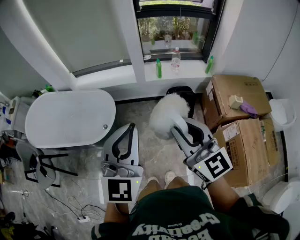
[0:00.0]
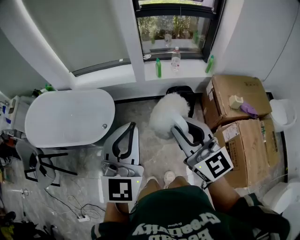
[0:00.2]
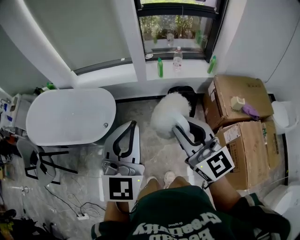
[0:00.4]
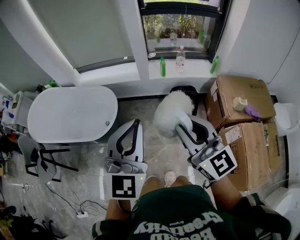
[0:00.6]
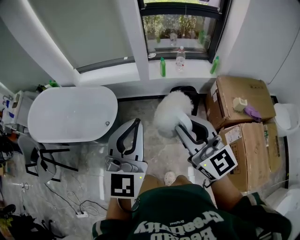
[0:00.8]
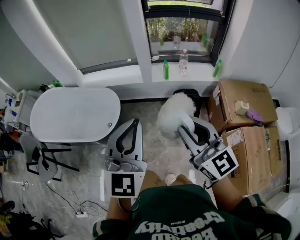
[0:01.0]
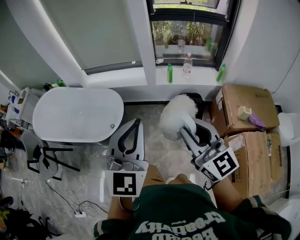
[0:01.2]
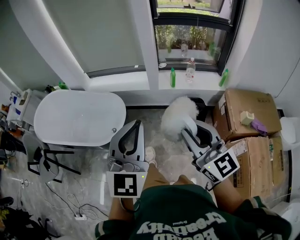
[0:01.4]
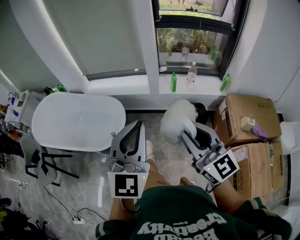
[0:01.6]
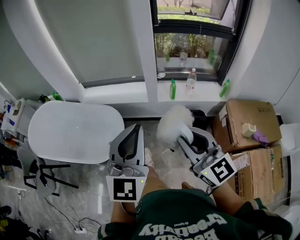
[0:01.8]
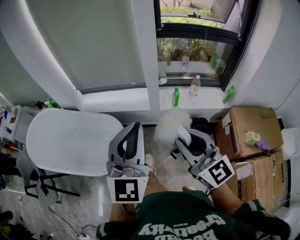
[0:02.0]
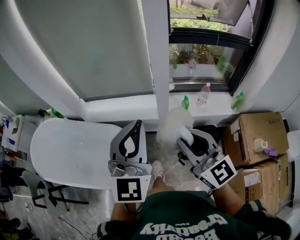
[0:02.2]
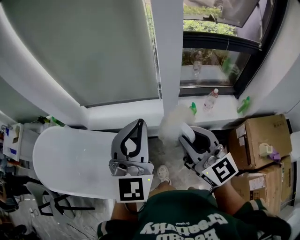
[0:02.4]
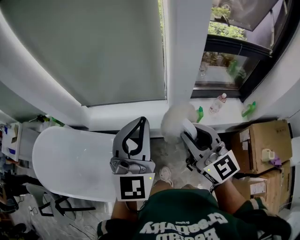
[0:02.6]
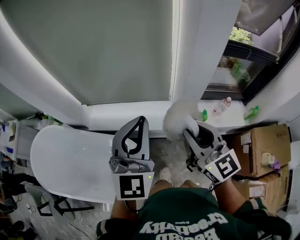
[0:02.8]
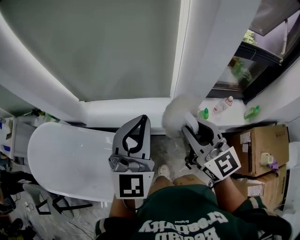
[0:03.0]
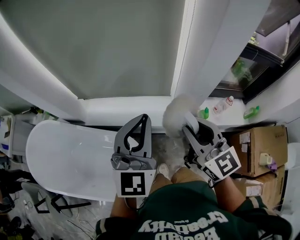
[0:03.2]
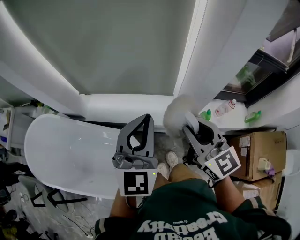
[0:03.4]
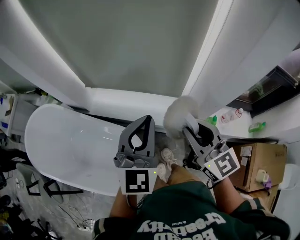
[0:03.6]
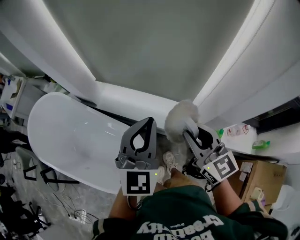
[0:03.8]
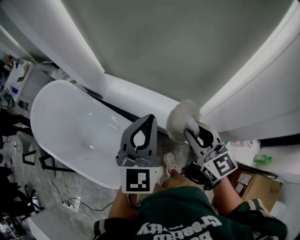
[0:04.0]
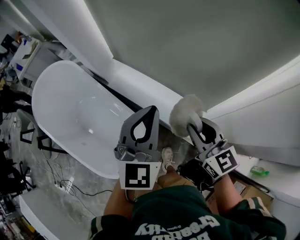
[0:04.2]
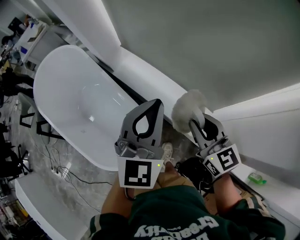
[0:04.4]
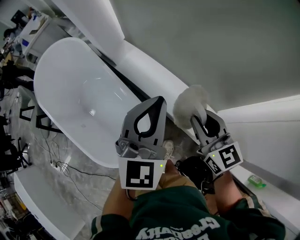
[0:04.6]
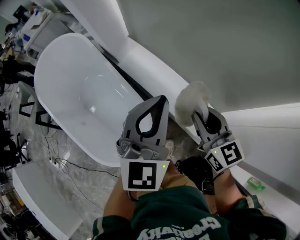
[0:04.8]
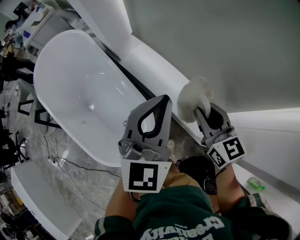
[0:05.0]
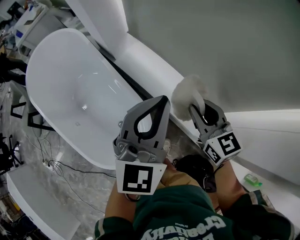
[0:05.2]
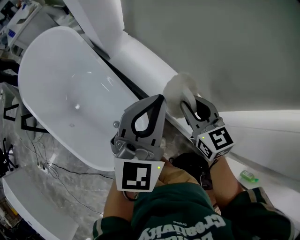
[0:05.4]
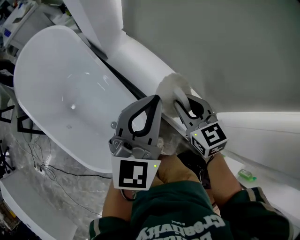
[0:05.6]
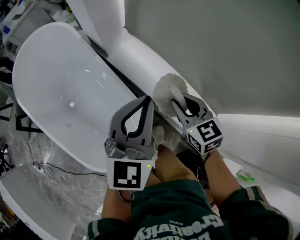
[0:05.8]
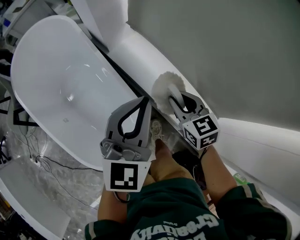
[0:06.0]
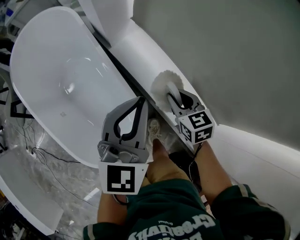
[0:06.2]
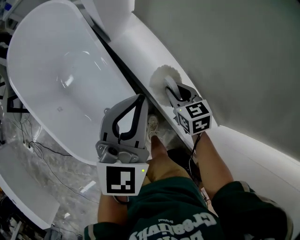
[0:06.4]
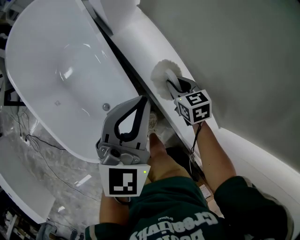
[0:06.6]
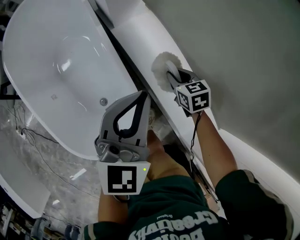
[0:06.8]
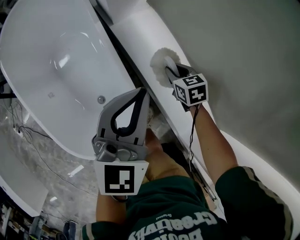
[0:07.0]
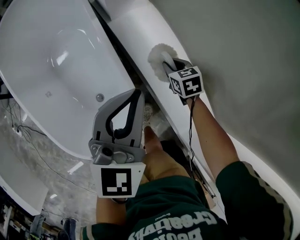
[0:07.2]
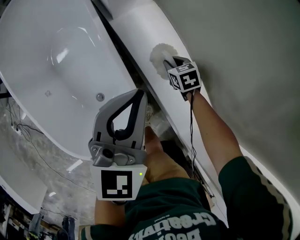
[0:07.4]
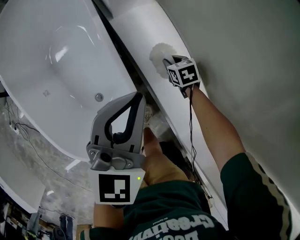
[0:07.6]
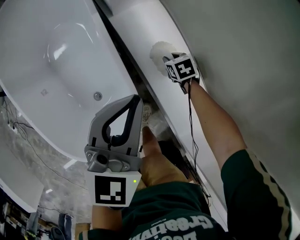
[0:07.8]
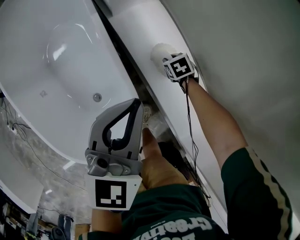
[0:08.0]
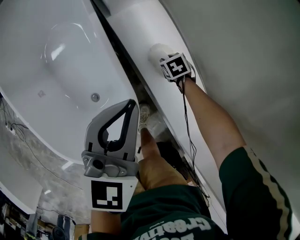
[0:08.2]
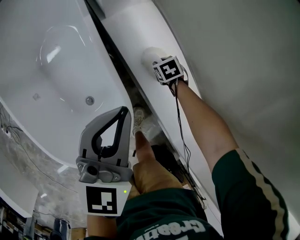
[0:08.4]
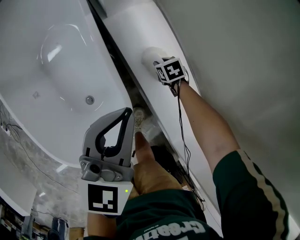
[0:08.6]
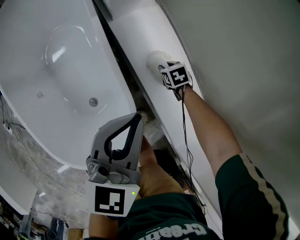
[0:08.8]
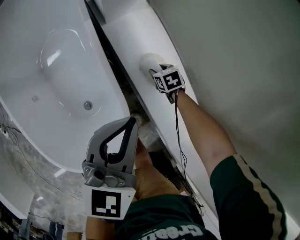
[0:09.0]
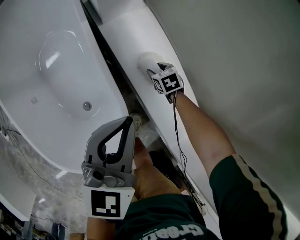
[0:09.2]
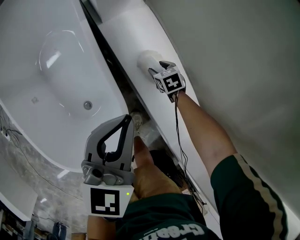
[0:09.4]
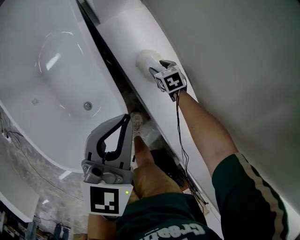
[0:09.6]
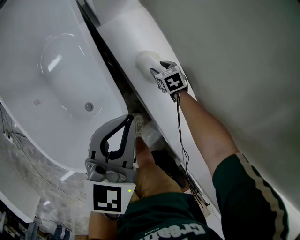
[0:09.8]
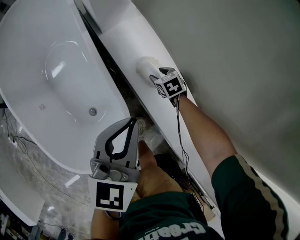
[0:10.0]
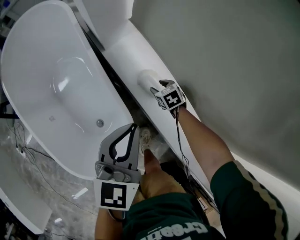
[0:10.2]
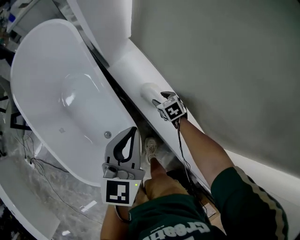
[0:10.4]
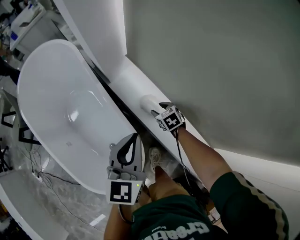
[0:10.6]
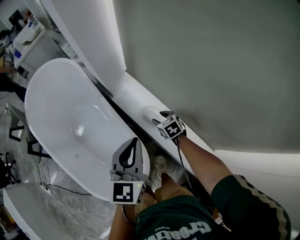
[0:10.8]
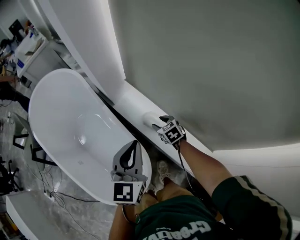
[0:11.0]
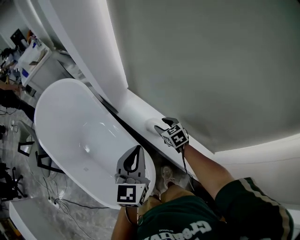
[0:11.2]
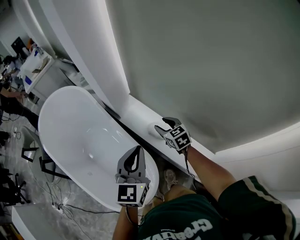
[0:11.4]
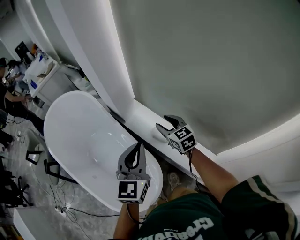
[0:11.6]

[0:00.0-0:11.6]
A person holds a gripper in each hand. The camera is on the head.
0:00.0 to 0:01.4: The grippers stay close to where they were, moving slightly.
0:01.4 to 0:02.8: The pair of grippers is taken forward, approximately 60 cm.
0:02.8 to 0:04.4: The left gripper ends up about 20 cm from where it was, and turns by approximately 30 degrees. Meanwhile the right gripper moves approximately 25 cm, and turns by roughly 40 degrees.
0:04.4 to 0:05.8: The left gripper heads to the left, downward and forward, covering roughly 15 cm, while the right gripper goes approximately 20 cm forward, downward and to the left, and changes its angle by some 20 degrees.
0:05.8 to 0:07.2: The right gripper travels downward and forward by about 30 cm, and rotates roughly 30 degrees. The left gripper goes about 15 cm downward and forward.
0:07.2 to 0:08.8: The left gripper shifts by some 5 cm, while the right gripper goes some 15 cm downward.
0:08.8 to 0:10.2: The left gripper ends up about 5 cm from where it was; the right gripper travels upward by approximately 10 cm, and opens its fingers.
0:10.2 to 0:11.6: The right gripper goes approximately 35 cm upward, and angles its fingers upward, by approximately 40 degrees, while the left gripper is displaced upward by roughly 20 cm.

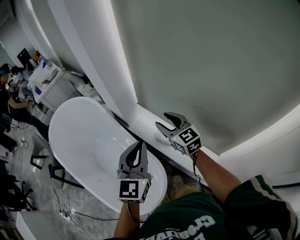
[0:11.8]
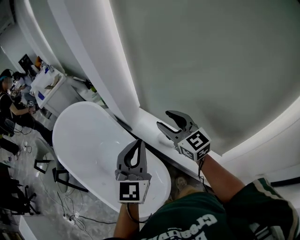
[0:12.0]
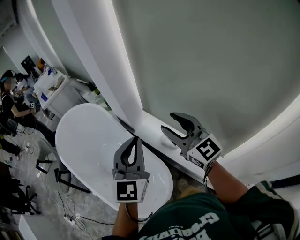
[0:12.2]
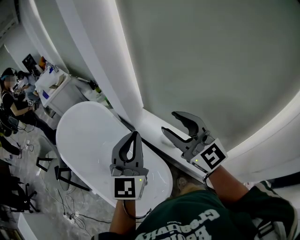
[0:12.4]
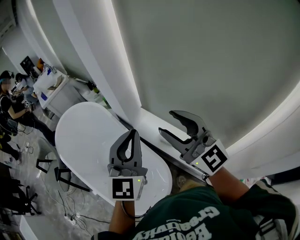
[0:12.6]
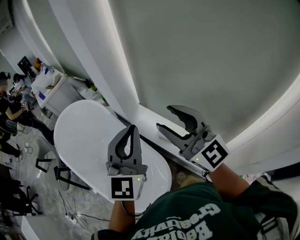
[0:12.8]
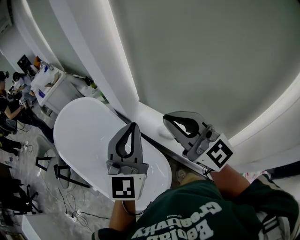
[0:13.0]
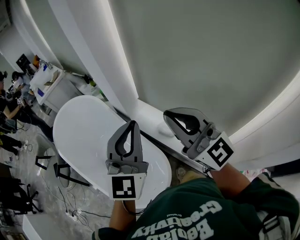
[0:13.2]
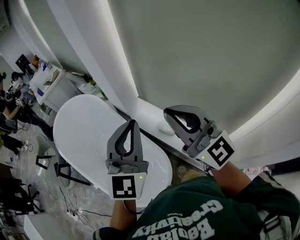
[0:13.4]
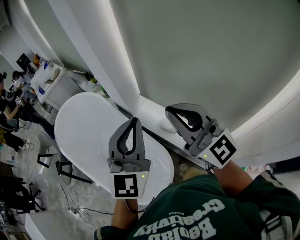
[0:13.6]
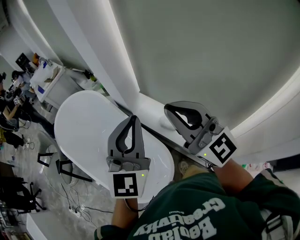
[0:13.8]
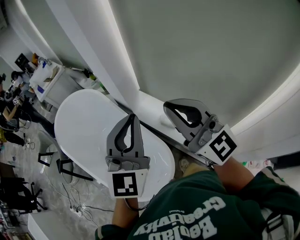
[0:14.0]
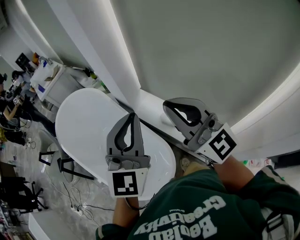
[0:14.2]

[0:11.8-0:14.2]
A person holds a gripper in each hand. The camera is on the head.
0:11.8 to 0:13.0: The left gripper moves upward, about 10 cm, while the right gripper is displaced upward and backward by roughly 25 cm, swivels approximately 30 degrees, and closes up.
0:13.0 to 0:14.2: The grippers move only a little.

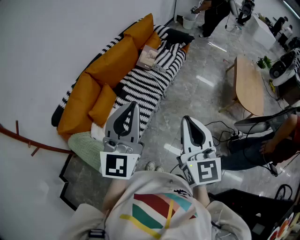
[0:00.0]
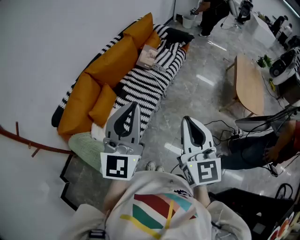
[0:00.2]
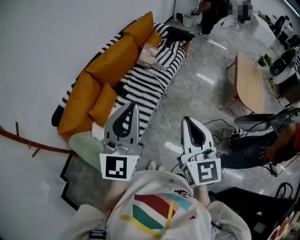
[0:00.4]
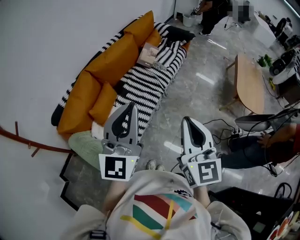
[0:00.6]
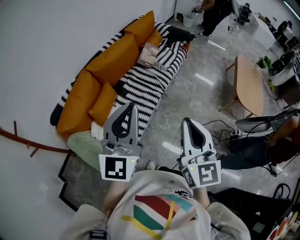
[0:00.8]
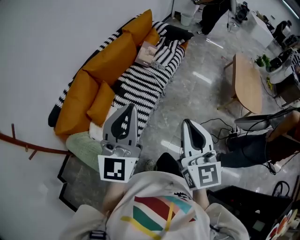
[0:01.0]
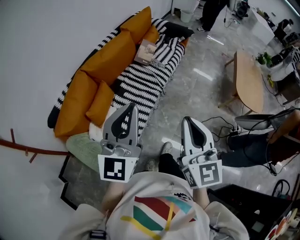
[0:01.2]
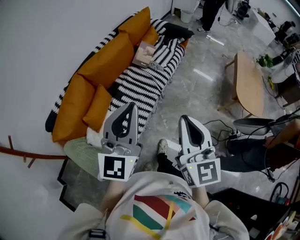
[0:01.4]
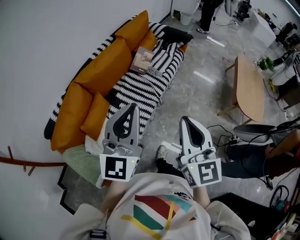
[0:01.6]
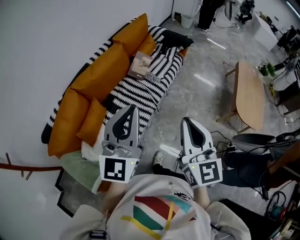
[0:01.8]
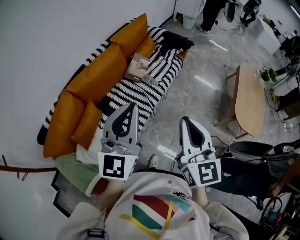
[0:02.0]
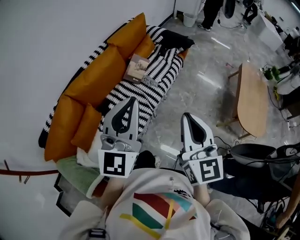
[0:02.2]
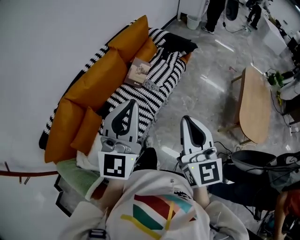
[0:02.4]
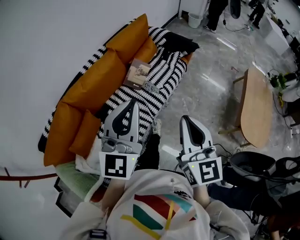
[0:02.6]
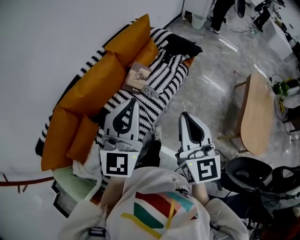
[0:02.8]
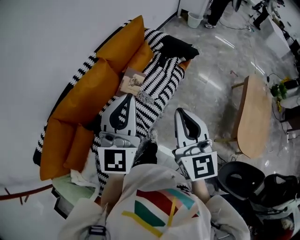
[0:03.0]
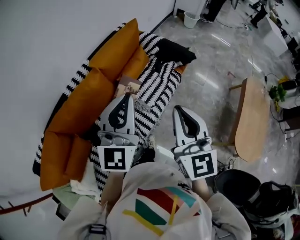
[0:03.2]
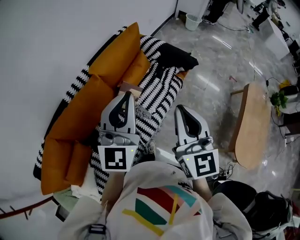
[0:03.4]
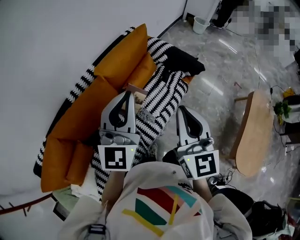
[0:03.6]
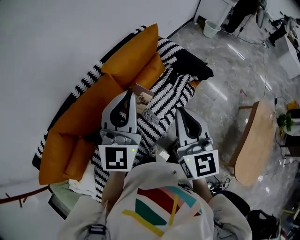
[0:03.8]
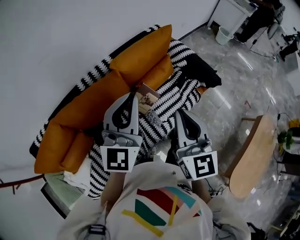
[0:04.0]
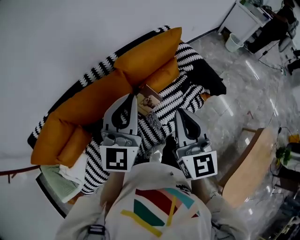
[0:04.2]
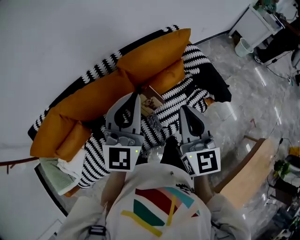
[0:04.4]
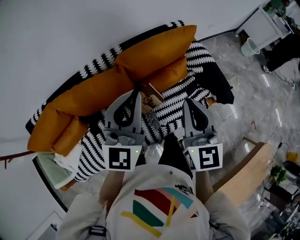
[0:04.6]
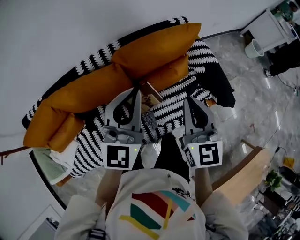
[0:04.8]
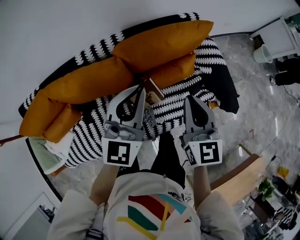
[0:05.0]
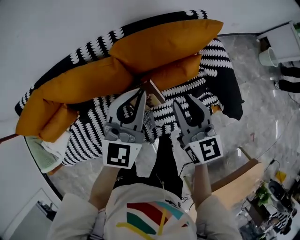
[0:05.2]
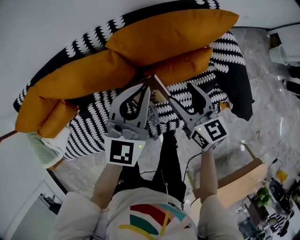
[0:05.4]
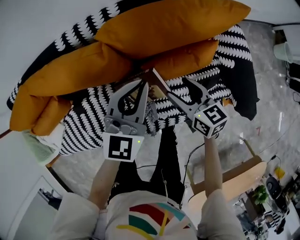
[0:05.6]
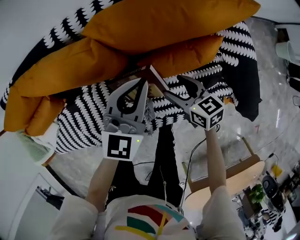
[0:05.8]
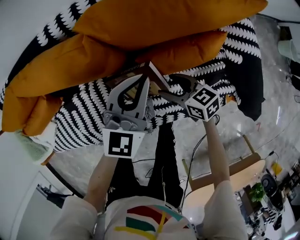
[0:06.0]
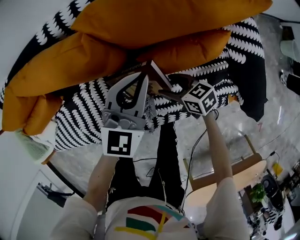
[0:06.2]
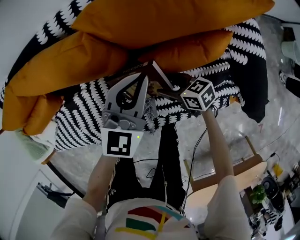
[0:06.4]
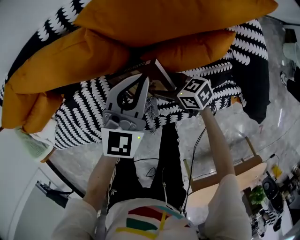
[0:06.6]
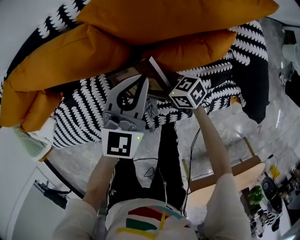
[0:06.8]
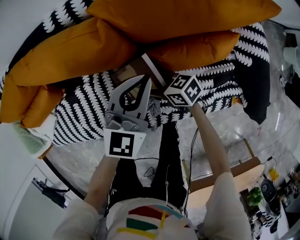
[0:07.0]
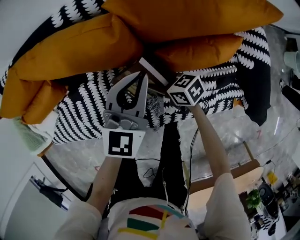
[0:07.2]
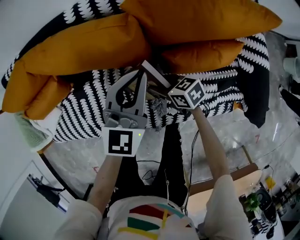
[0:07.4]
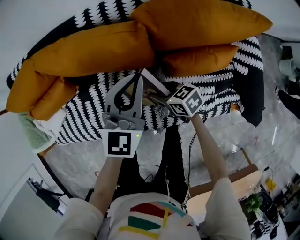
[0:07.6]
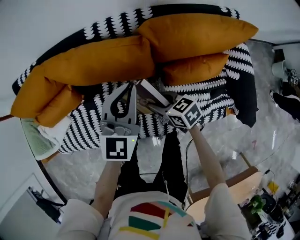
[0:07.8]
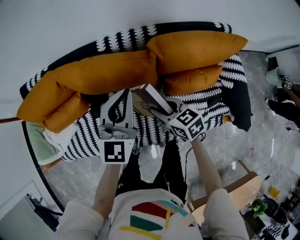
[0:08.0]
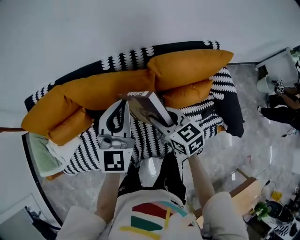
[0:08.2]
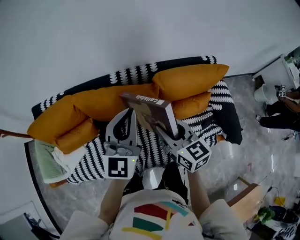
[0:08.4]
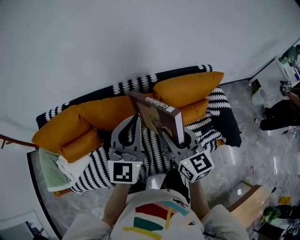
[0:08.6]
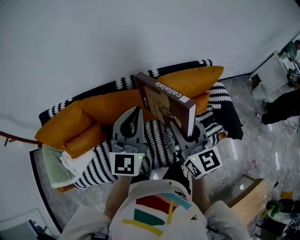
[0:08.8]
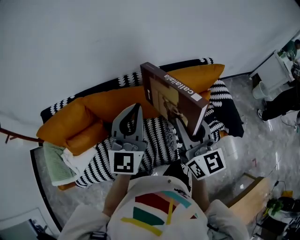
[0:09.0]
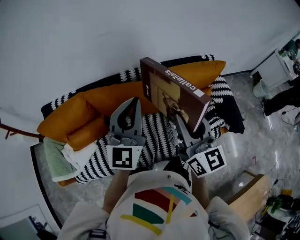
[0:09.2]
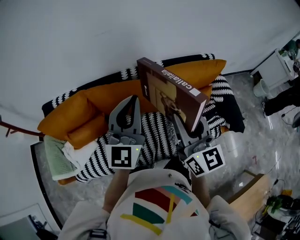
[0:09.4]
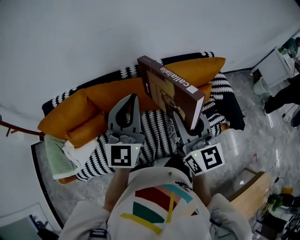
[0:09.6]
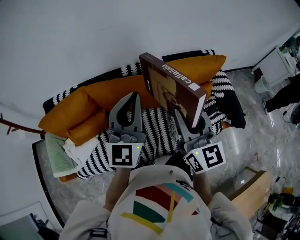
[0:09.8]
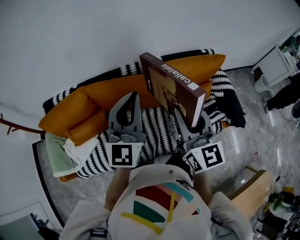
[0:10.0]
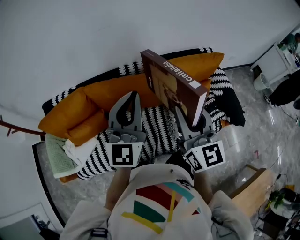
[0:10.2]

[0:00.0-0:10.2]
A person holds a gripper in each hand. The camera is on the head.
0:00.0 to 0:01.4: The two grippers go approximately 10 cm forward.
0:01.4 to 0:03.0: Both grippers are carried forward, some 50 cm.
0:03.0 to 0:04.4: Both grippers travel together forward, about 30 cm. The right gripper turns by about 20 degrees; the left gripper rotates some 20 degrees.
0:04.4 to 0:05.8: Both grippers travel together downward, approximately 35 cm. The right gripper swivels roughly 60 degrees, and opens up.
0:05.8 to 0:07.2: The right gripper goes about 15 cm to the left and downward, rotates approximately 30 degrees, and closes up, while the left gripper is displaced to the left by roughly 5 cm.
0:07.2 to 0:08.8: The left gripper moves upward, some 25 cm, and turns by approximately 20 degrees; the right gripper is displaced upward by about 40 cm, and tips its fingers upward by approximately 40 degrees.
0:08.8 to 0:10.2: The left gripper shifts by about 5 cm. The right gripper goes approximately 5 cm backward.
